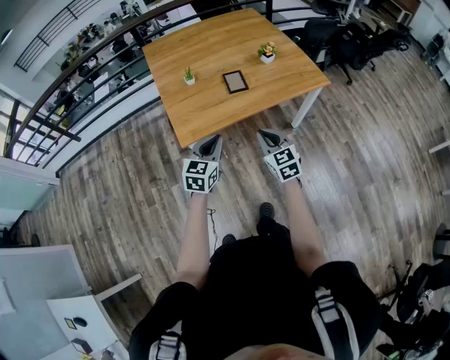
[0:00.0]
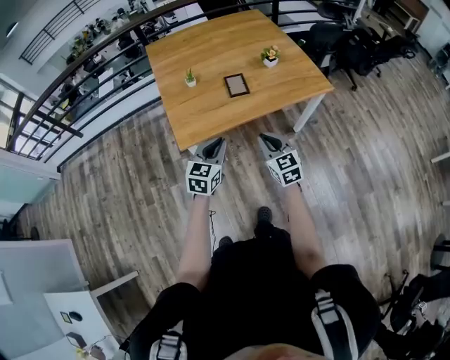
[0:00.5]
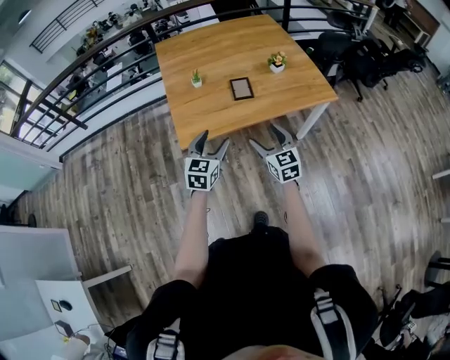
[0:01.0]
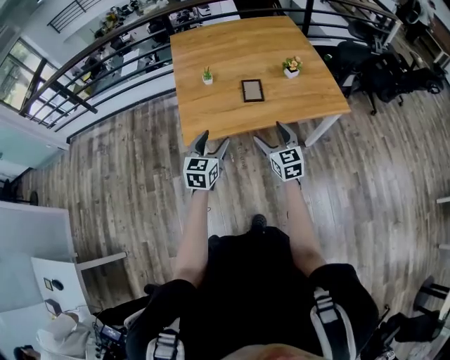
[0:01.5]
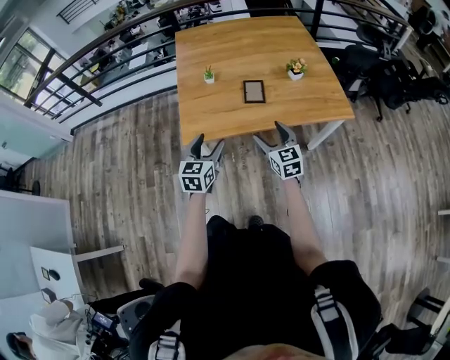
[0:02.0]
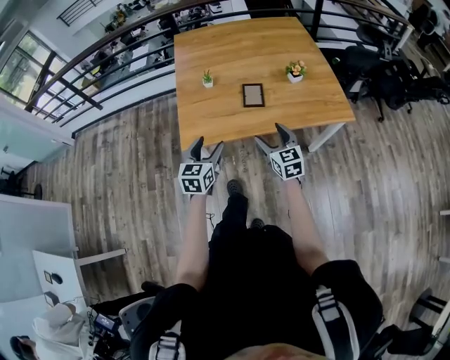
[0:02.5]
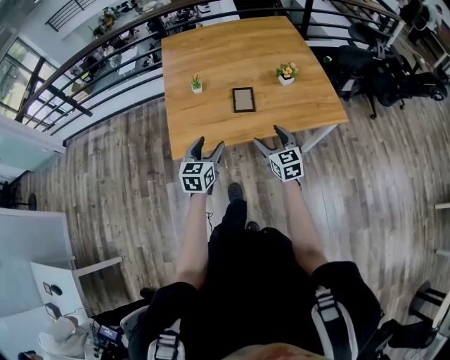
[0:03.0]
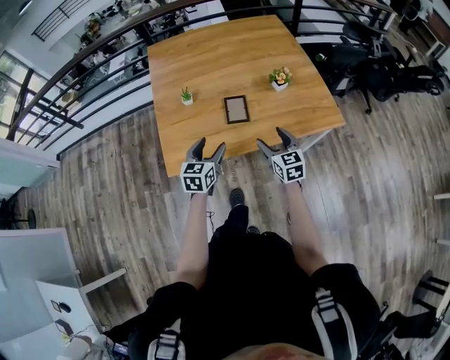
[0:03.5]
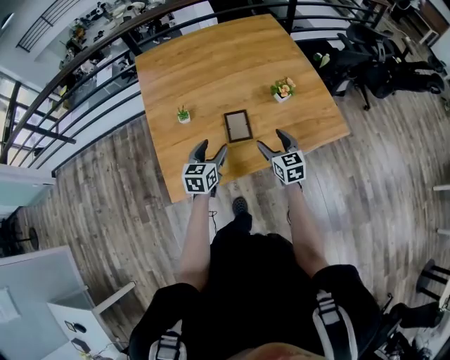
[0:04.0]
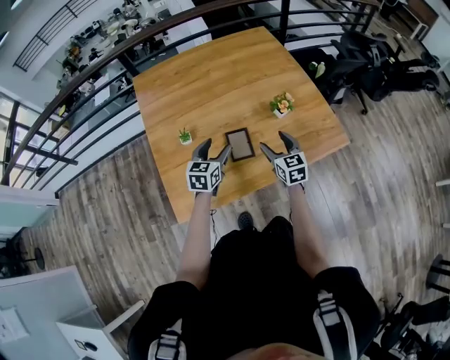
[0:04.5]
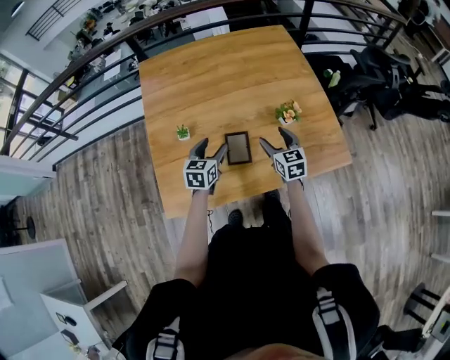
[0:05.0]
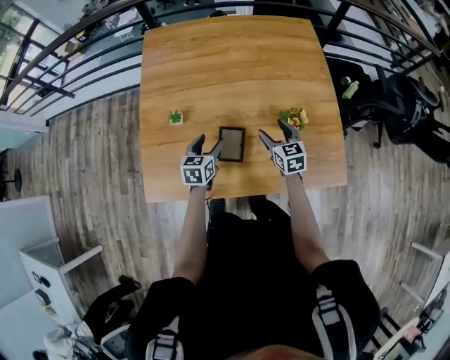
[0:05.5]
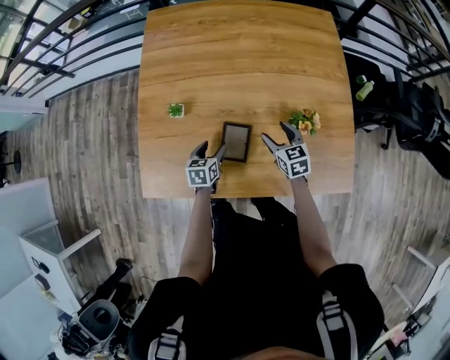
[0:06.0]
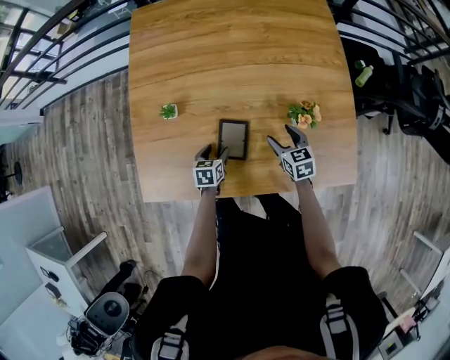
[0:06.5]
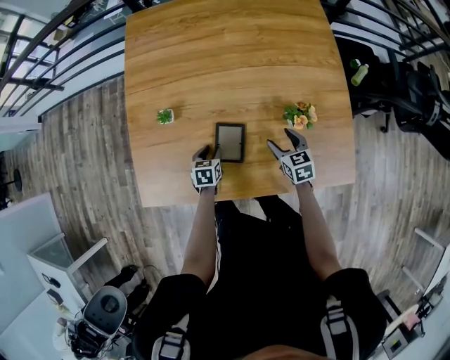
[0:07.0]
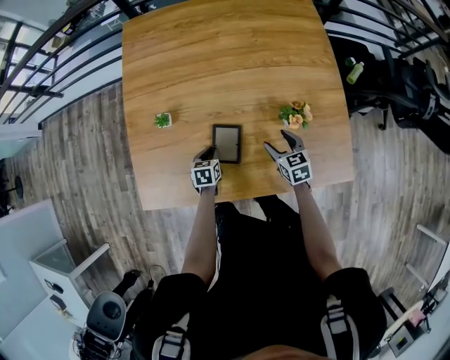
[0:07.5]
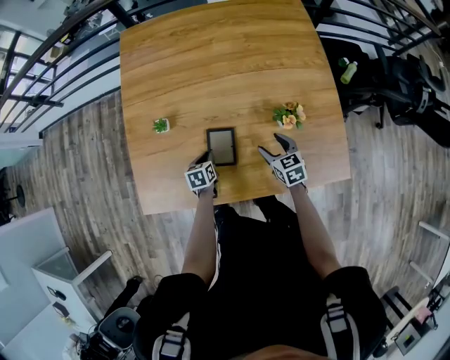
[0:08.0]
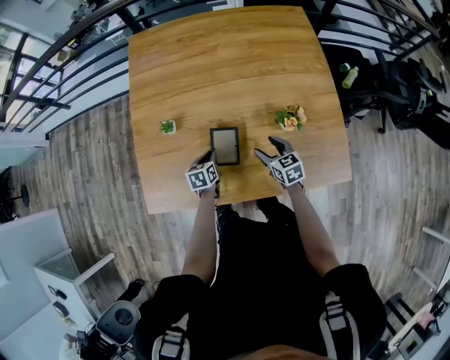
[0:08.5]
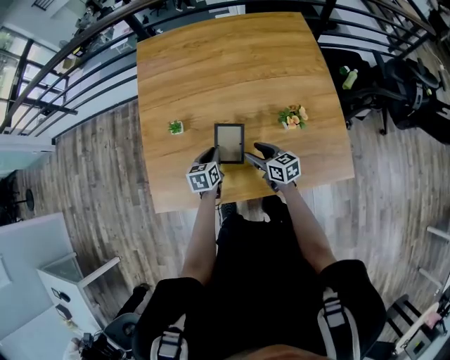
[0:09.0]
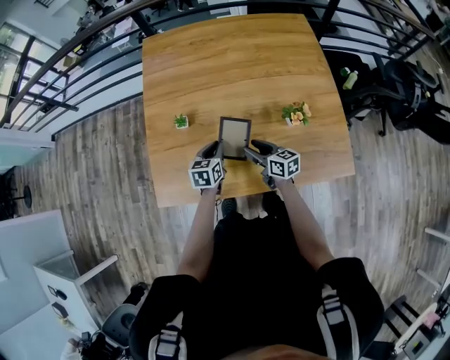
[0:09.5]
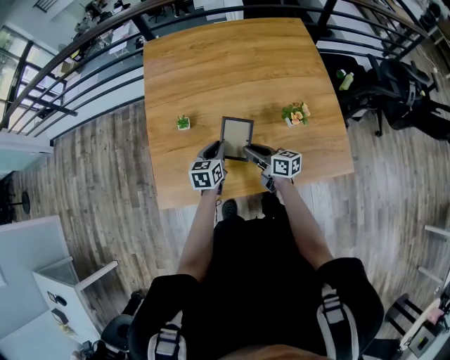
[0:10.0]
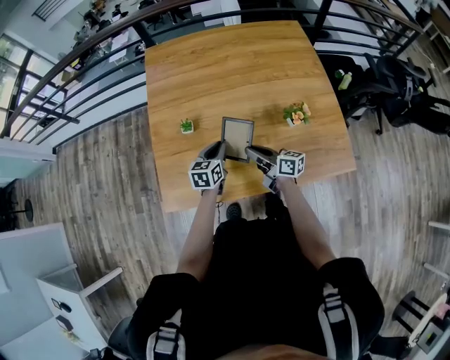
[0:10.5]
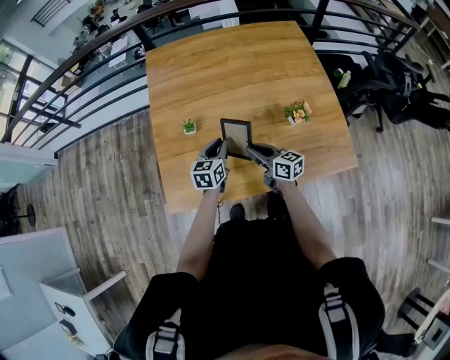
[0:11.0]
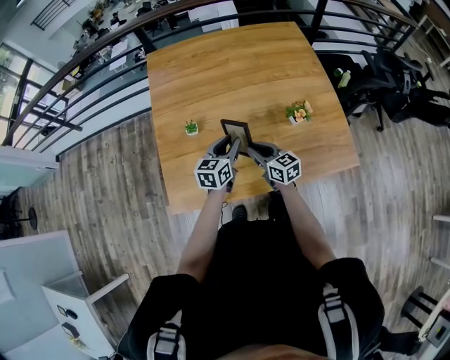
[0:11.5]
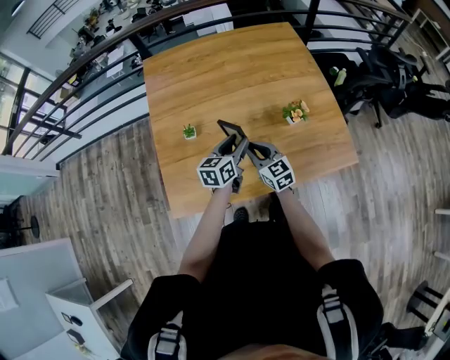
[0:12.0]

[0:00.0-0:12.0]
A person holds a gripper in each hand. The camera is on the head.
0:00.0 to 0:02.0: The left gripper moves forward, roughly 5 cm, rotates approximately 20 degrees, and opens. The right gripper goes approximately 10 cm forward, and opens up.
0:02.0 to 0:04.0: Both grippers travel together forward, roughly 25 cm.
0:04.0 to 0:06.0: The left gripper shifts roughly 20 cm downward and forward, and changes its angle by approximately 30 degrees, while the right gripper moves forward and downward, approximately 20 cm, and swivels about 20 degrees.
0:06.0 to 0:08.0: The left gripper goes approximately 5 cm downward, and closes its fingers. Meanwhile the right gripper goes some 5 cm backward.
0:08.0 to 0:10.0: The right gripper moves to the left and upward, some 15 cm, changes its angle by roughly 50 degrees, and closes its fingers. Meanwhile the left gripper heads upward, covering some 15 cm, and rotates approximately 20 degrees.
0:10.0 to 0:12.0: The left gripper shifts about 10 cm upward and to the right, and opens, while the right gripper shifts some 5 cm upward, and rotates around the line of its fingers by some 40 degrees, counterclockwise from behind.

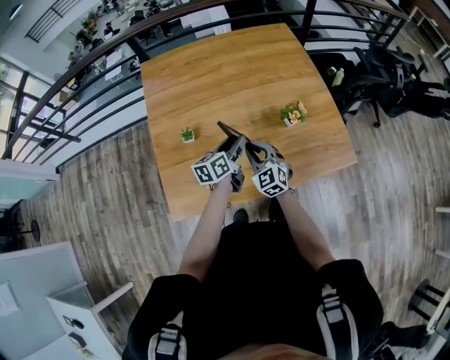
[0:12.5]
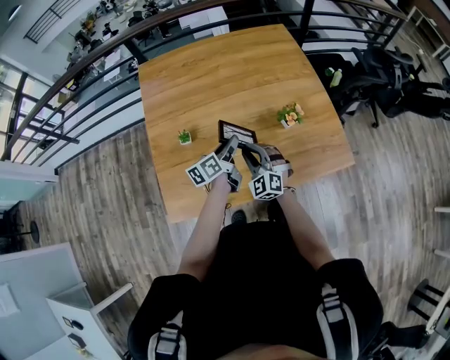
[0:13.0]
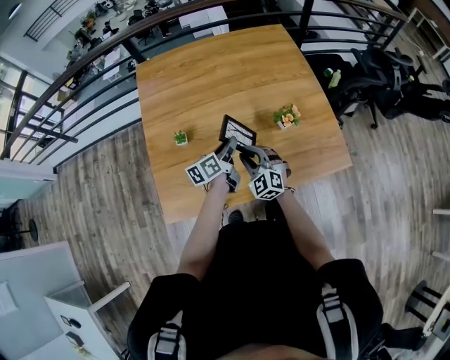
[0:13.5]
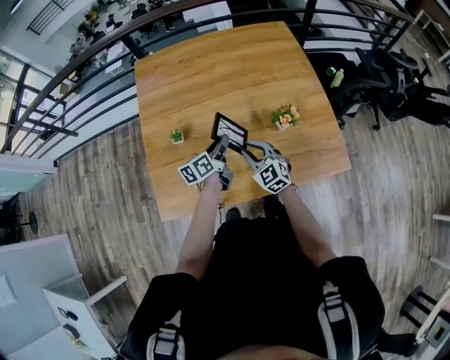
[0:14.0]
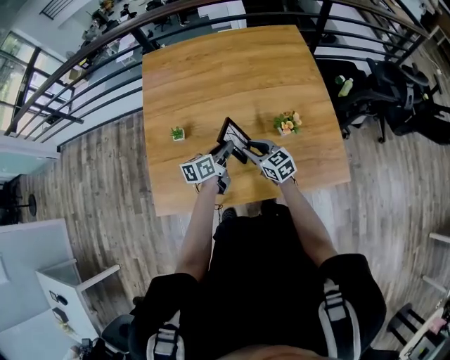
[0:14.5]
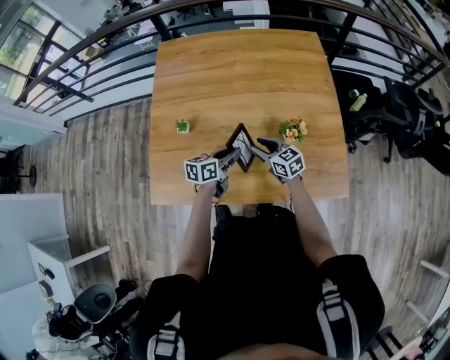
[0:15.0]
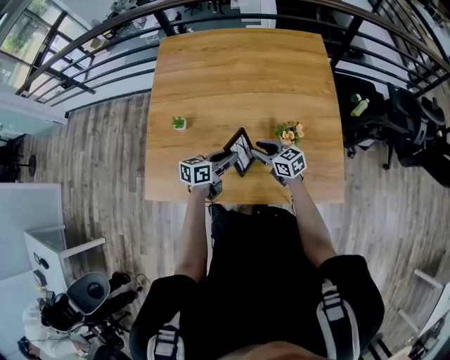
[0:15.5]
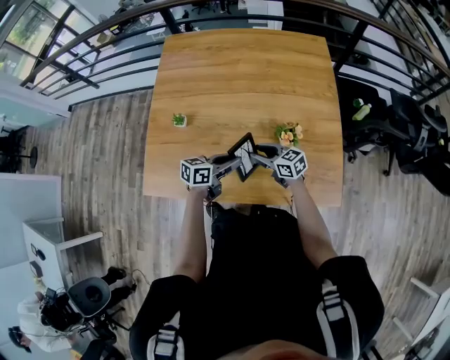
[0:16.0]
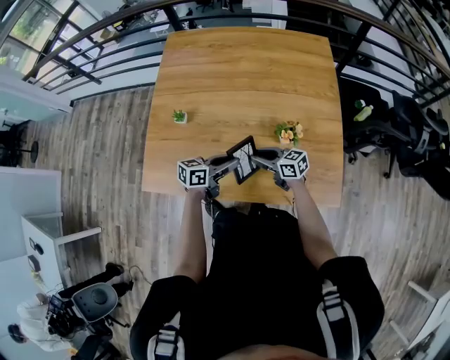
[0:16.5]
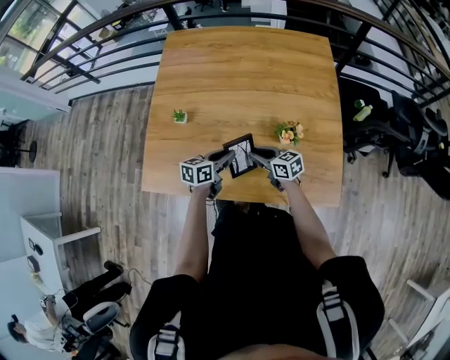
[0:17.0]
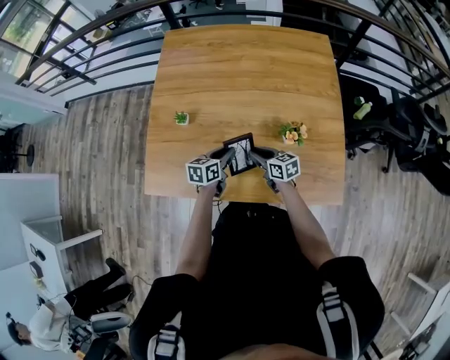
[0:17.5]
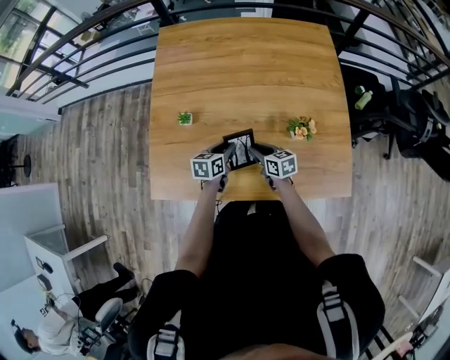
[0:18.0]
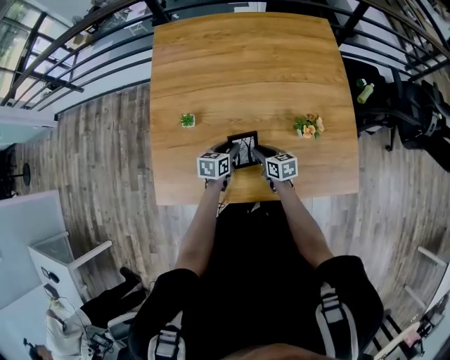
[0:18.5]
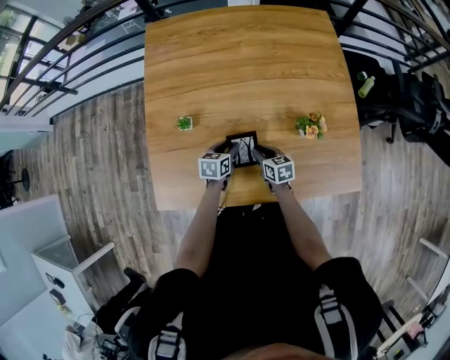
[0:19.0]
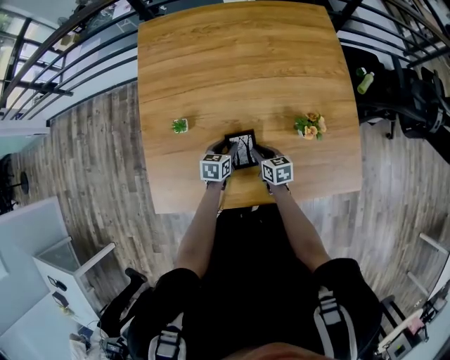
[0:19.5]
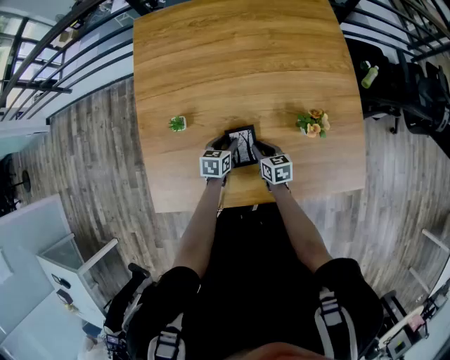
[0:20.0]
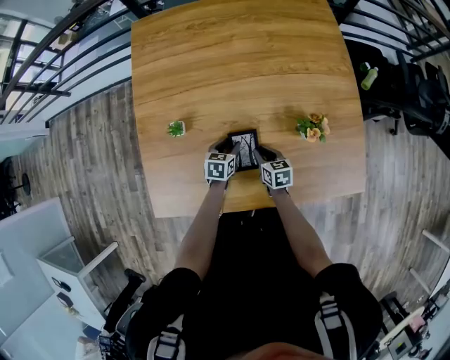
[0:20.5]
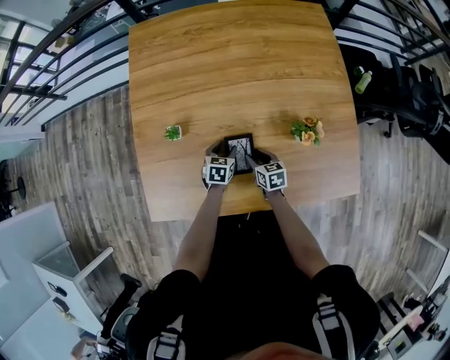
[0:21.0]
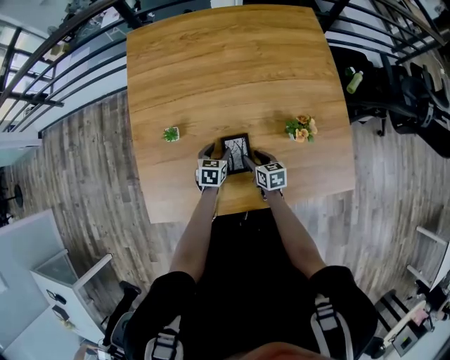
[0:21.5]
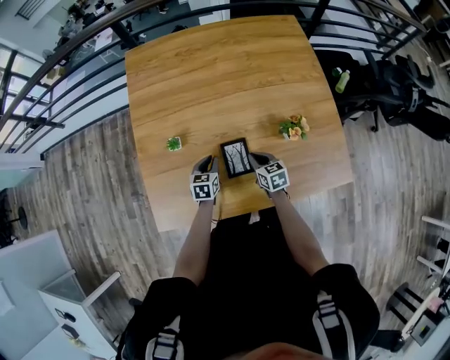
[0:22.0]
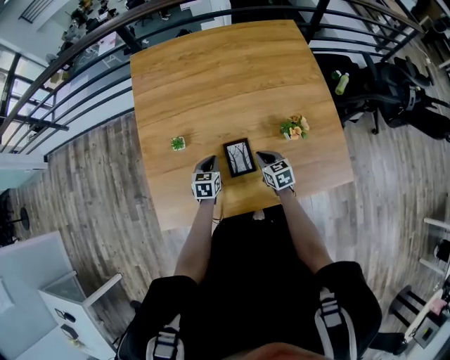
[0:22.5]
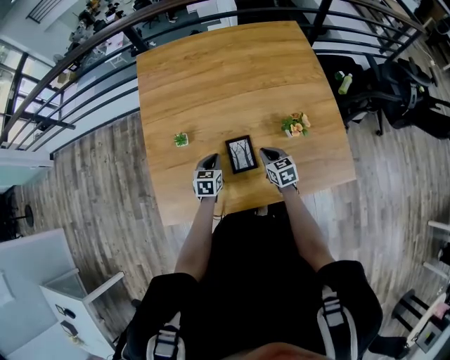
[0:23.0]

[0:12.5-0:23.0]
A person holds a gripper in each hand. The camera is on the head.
0:12.5 to 0:14.5: The left gripper ends up about 5 cm from where it was; the right gripper heads to the right, covering roughly 5 cm, and swivels roughly 40 degrees.
0:14.5 to 0:16.5: The left gripper moves some 10 cm, while the right gripper moves approximately 5 cm, and rotates about 30 degrees.
0:16.5 to 0:19.0: Both grippers travel together downward, about 10 cm. The left gripper rotates some 30 degrees. Meanwhile the right gripper turns by roughly 40 degrees.
0:19.0 to 0:21.0: The left gripper heads downward, covering approximately 5 cm.
0:21.0 to 0:23.0: The right gripper is displaced upward by about 10 cm, and closes its fingers. The left gripper is displaced upward and to the left by about 10 cm, and closes.

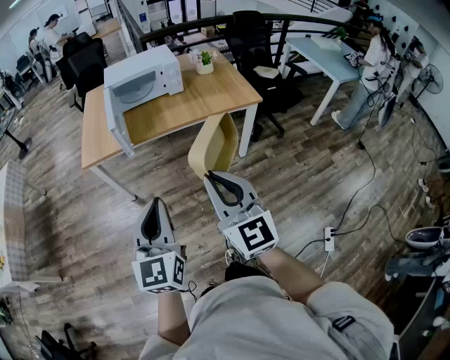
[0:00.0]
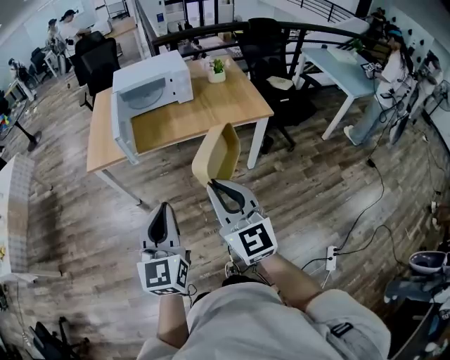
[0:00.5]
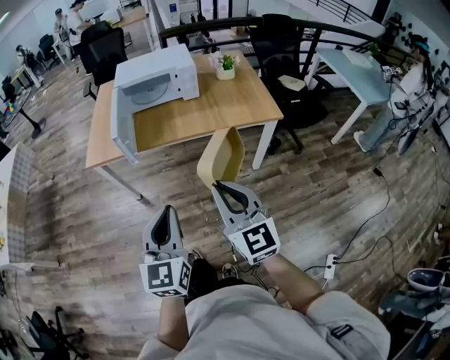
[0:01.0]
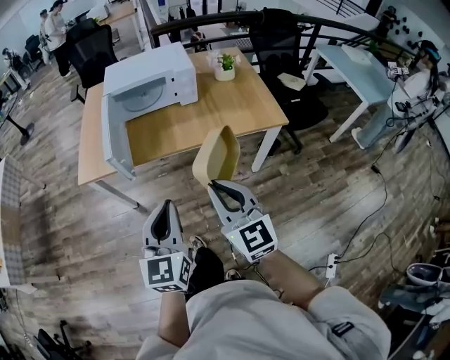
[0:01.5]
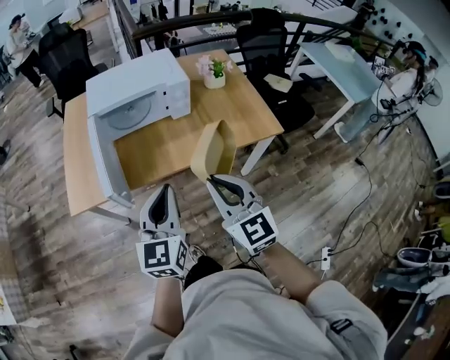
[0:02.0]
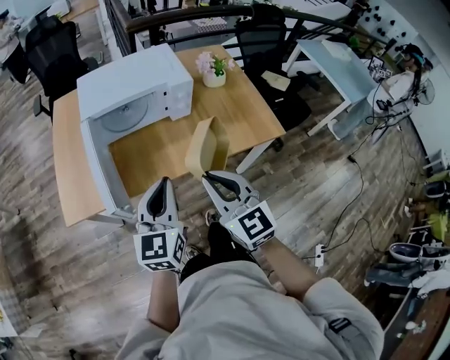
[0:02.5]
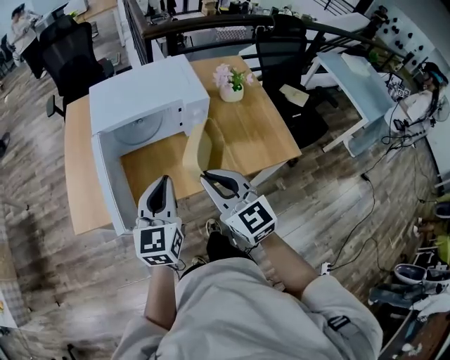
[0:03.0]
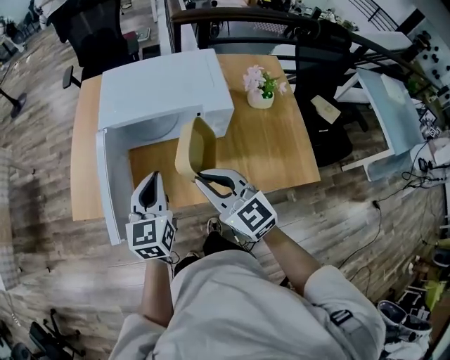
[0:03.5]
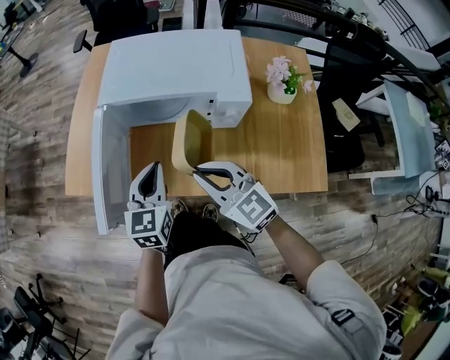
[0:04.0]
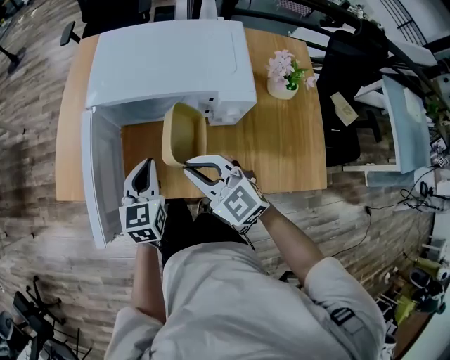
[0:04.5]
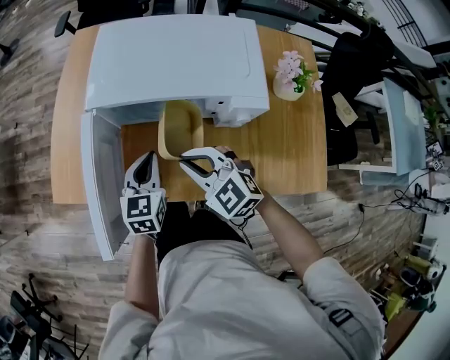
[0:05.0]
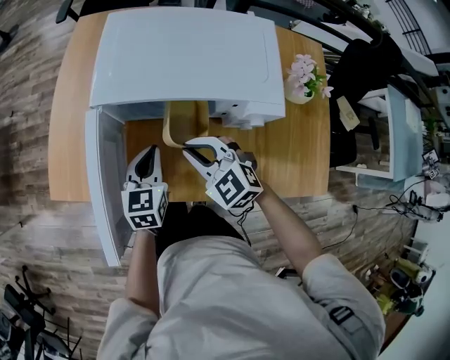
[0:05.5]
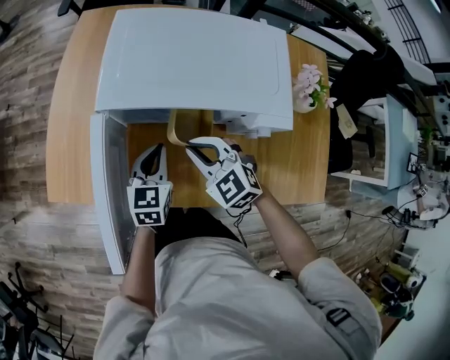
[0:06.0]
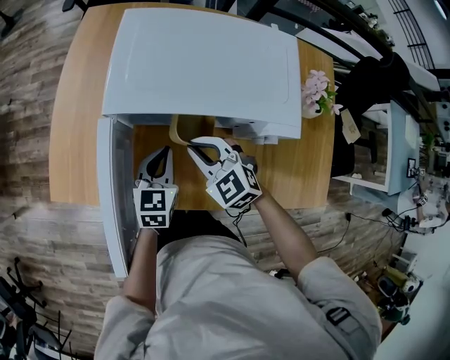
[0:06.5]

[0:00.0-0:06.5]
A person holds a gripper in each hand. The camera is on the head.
0:00.0 to 0:02.0: Both grippers travel together forward, roughly 35 cm.
0:02.0 to 0:04.5: The left gripper changes place by roughly 35 cm, and rotates approximately 30 degrees. The right gripper ends up approximately 35 cm from where it was, and rotates about 40 degrees.
0:04.5 to 0:06.5: The grippers both shift forward and downward by about 15 cm.
